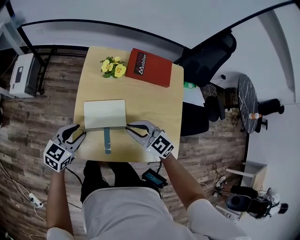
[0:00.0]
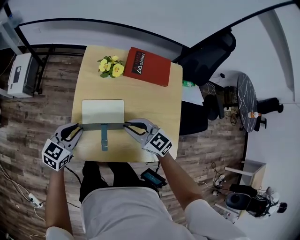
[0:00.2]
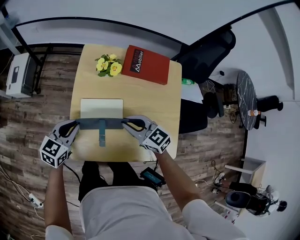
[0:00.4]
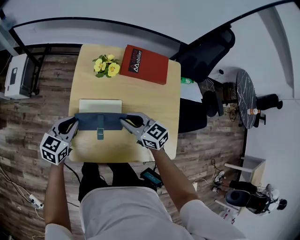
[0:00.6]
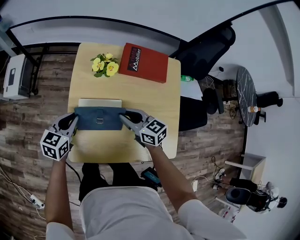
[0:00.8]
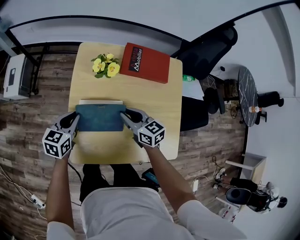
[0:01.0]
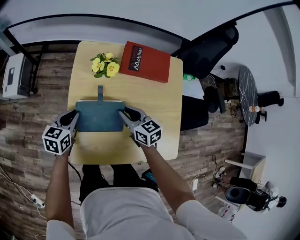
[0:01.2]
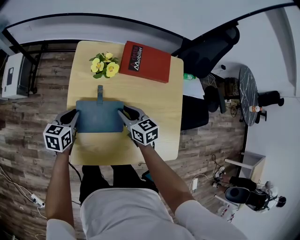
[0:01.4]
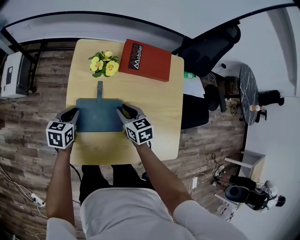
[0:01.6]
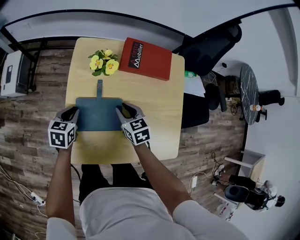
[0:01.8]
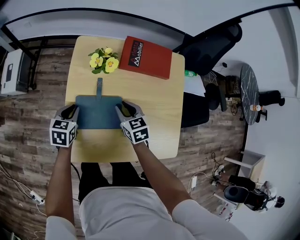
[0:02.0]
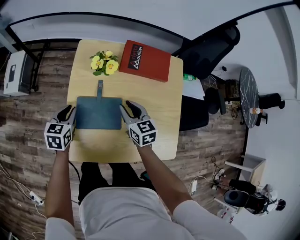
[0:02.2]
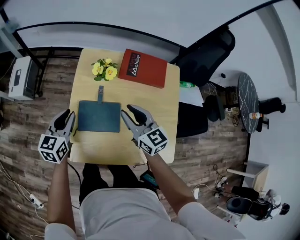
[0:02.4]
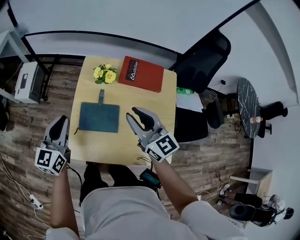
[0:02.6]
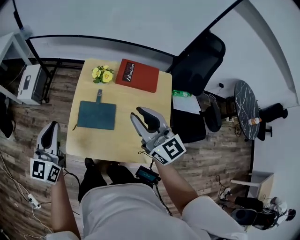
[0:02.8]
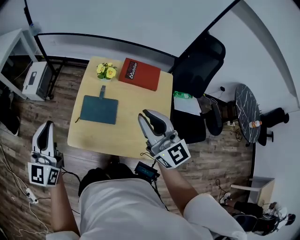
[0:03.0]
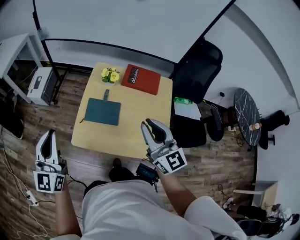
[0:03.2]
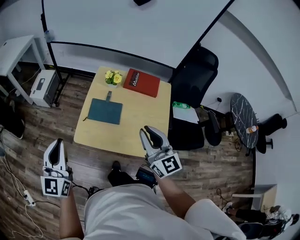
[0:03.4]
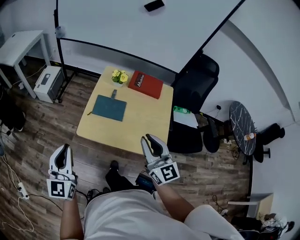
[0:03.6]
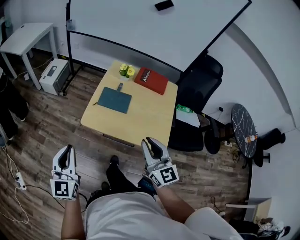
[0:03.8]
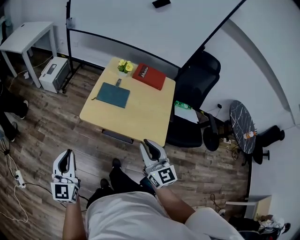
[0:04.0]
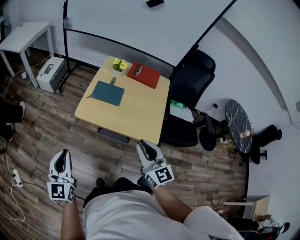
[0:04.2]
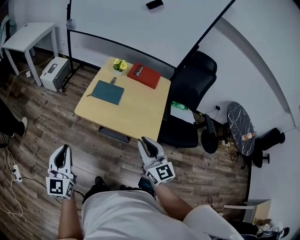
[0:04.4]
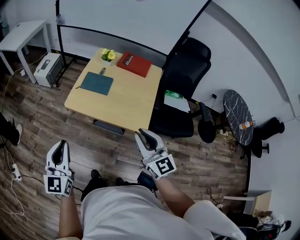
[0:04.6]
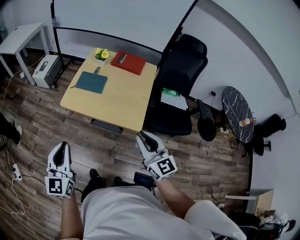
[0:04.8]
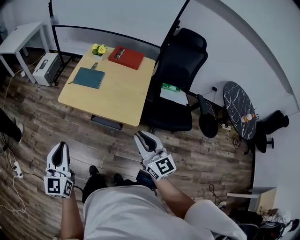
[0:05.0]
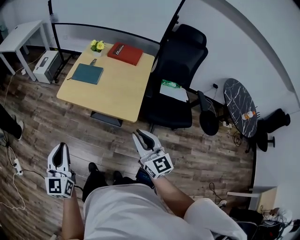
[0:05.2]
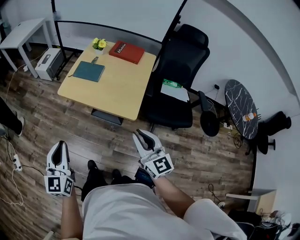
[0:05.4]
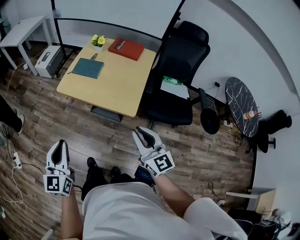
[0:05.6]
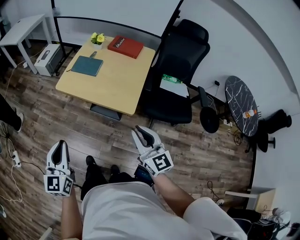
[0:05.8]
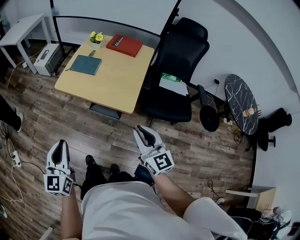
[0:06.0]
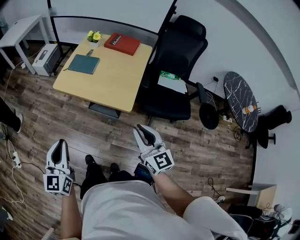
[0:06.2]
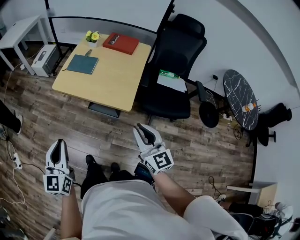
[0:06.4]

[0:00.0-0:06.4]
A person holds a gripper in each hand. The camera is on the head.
0:00.0 to 0:01.6: The right gripper heads downward and forward, covering some 15 cm, and changes its angle by roughly 40 degrees. The left gripper heads forward and downward, covering some 15 cm, changes its angle by roughly 20 degrees, and closes.
0:01.6 to 0:03.2: Both grippers move upward and backward, approximately 40 cm. The left gripper tilts its fingers some 50 degrees upward; the right gripper tips its fingers upward by some 40 degrees.
0:03.2 to 0:04.8: Both grippers travel together backward, about 30 cm.
0:04.8 to 0:06.4: Both grippers travel together backward and to the right, some 10 cm.

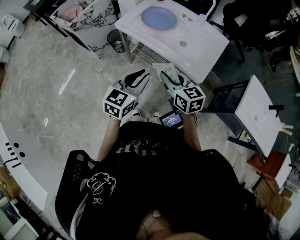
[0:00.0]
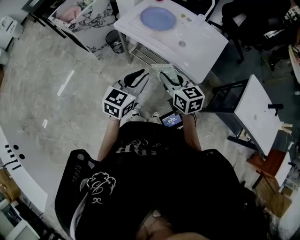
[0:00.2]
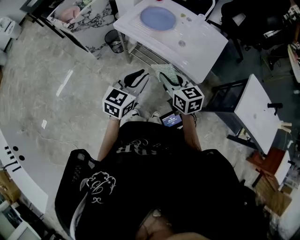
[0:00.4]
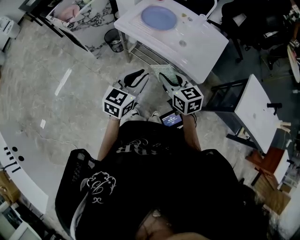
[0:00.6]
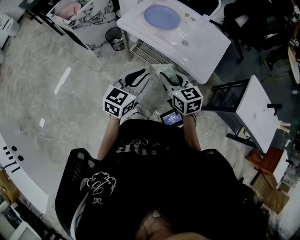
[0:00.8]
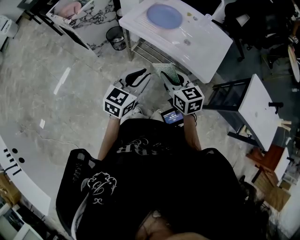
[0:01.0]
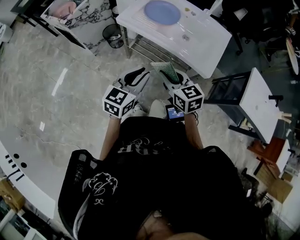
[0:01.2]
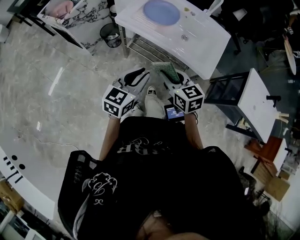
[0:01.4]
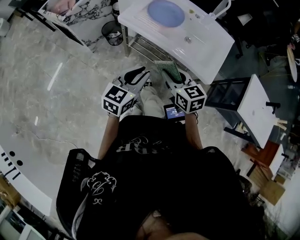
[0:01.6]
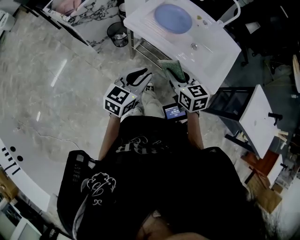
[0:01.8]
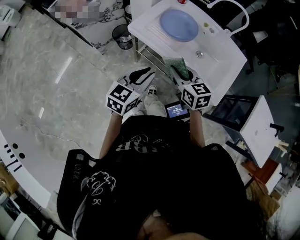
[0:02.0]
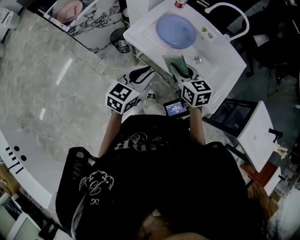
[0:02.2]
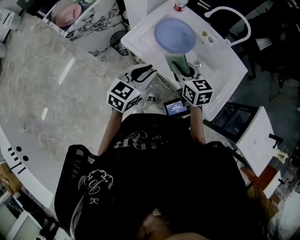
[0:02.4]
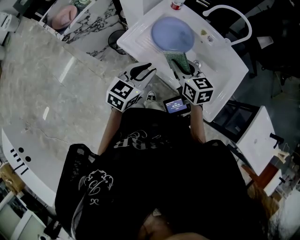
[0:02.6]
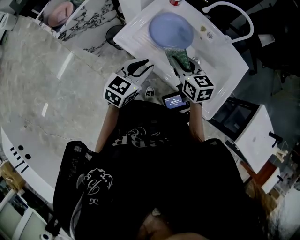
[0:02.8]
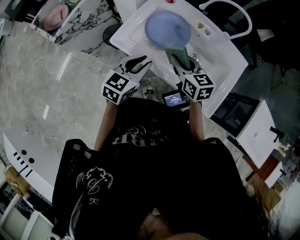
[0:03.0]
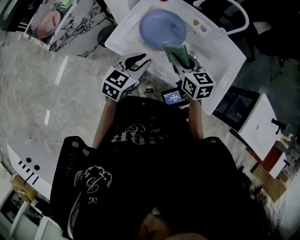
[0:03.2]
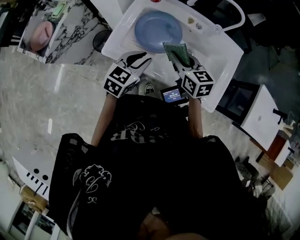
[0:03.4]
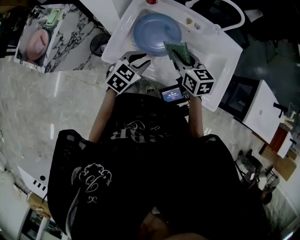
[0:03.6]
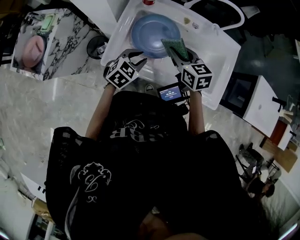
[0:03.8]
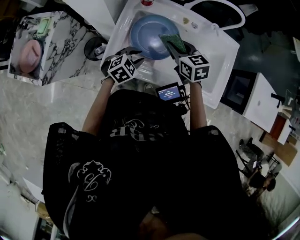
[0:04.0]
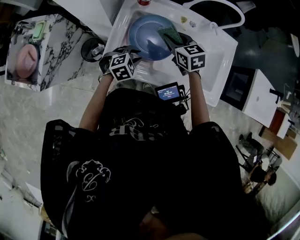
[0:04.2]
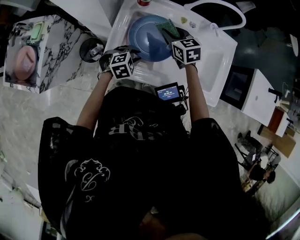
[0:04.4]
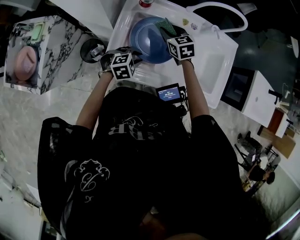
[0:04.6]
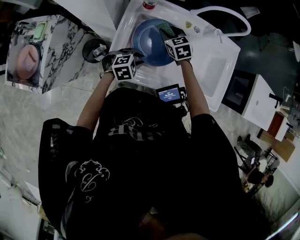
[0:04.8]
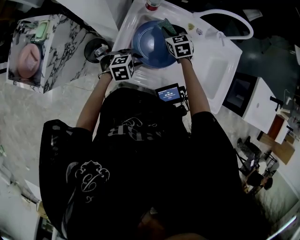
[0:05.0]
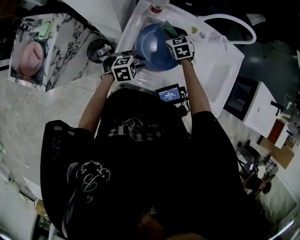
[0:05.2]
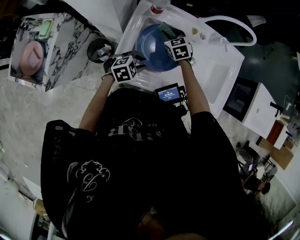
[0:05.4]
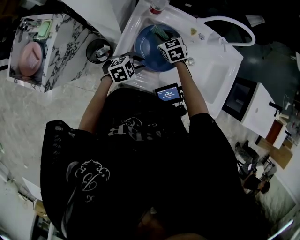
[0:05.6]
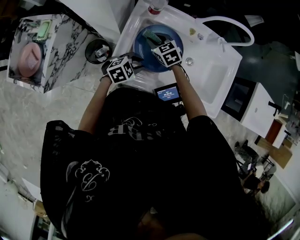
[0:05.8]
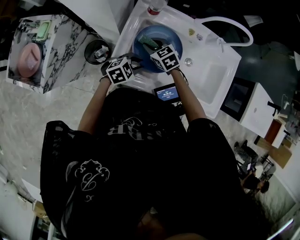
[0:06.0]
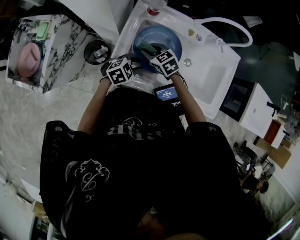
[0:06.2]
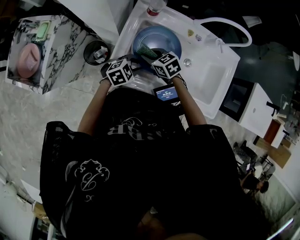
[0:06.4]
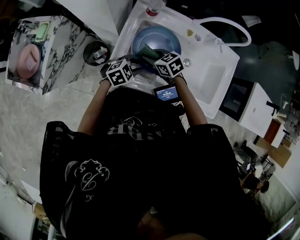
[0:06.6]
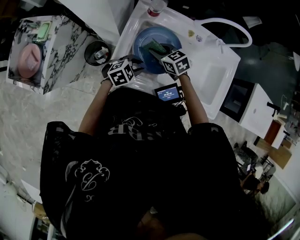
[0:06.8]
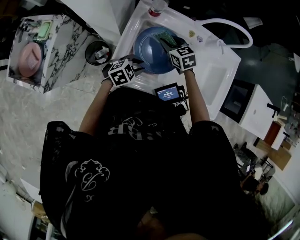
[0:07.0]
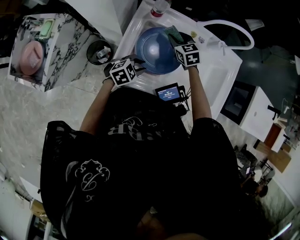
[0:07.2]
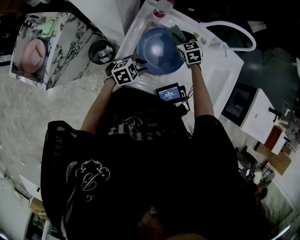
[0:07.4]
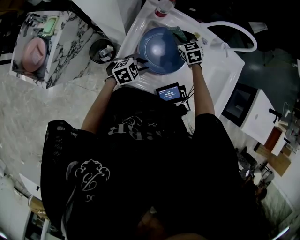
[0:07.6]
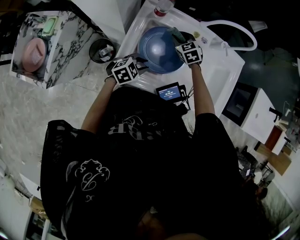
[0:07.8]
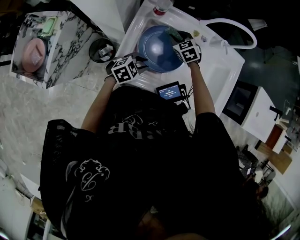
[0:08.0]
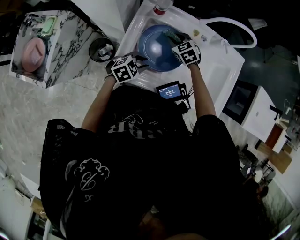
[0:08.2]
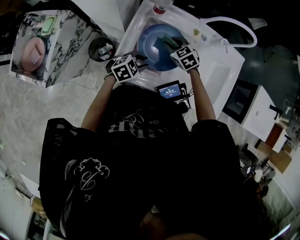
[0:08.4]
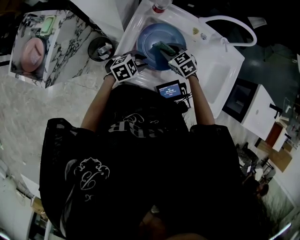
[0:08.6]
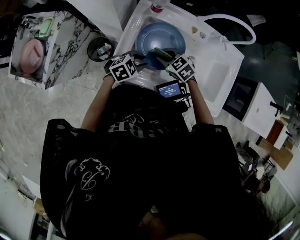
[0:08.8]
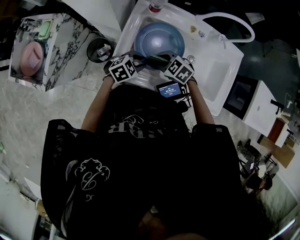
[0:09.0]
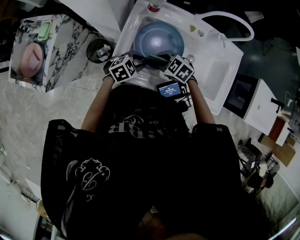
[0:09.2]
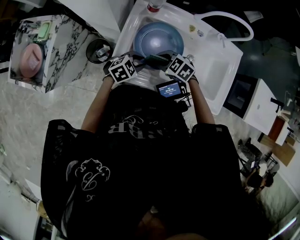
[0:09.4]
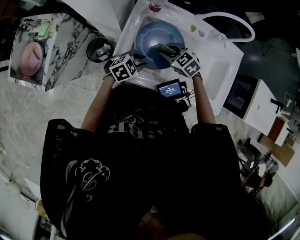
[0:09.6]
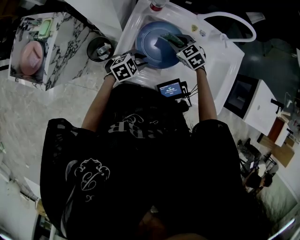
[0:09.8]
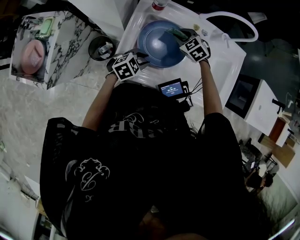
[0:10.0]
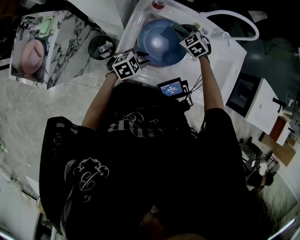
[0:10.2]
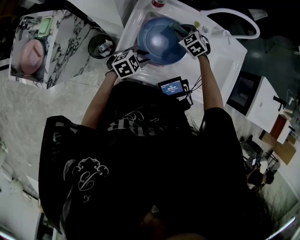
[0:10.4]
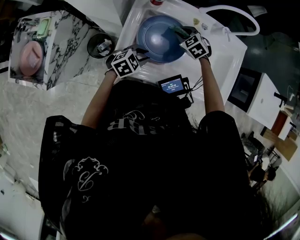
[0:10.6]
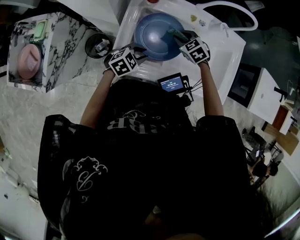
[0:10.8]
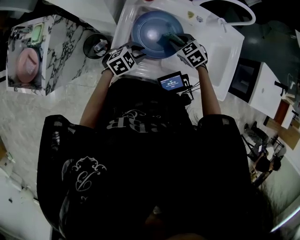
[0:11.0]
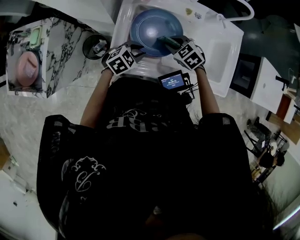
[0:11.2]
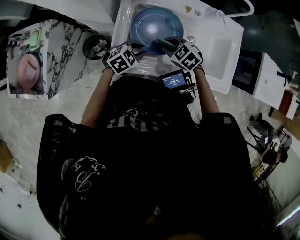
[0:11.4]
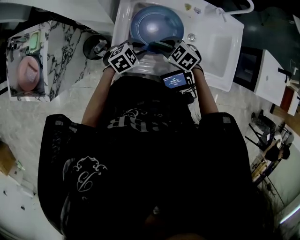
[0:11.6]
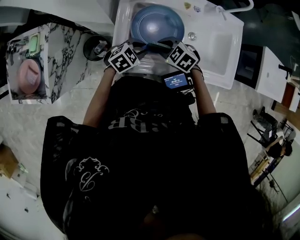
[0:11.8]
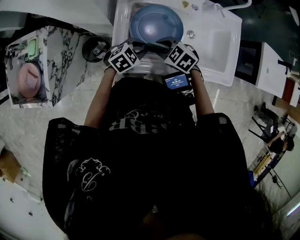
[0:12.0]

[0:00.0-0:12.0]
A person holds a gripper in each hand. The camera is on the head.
0:00.0 to 0:01.6: The left gripper travels to the left and forward by approximately 10 cm; the right gripper heads to the left, covering about 10 cm.
0:01.6 to 0:03.0: Both grippers travel together forward, some 25 cm.
0:03.0 to 0:04.4: The right gripper ends up some 20 cm from where it was. Meanwhile the left gripper goes approximately 20 cm downward, and tilts its fingers approximately 30 degrees downward.
0:04.4 to 0:06.0: The right gripper heads to the left and downward, covering some 10 cm.
0:06.0 to 0:07.6: The right gripper shifts by roughly 15 cm.
0:07.6 to 0:09.0: The right gripper moves about 20 cm, and changes its angle by some 30 degrees.
0:09.0 to 0:10.4: The right gripper moves some 15 cm, and turns by about 20 degrees.
0:10.4 to 0:12.0: The right gripper shifts by about 20 cm.

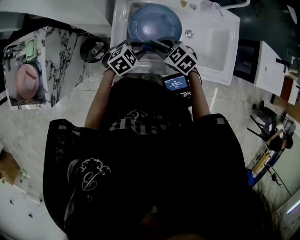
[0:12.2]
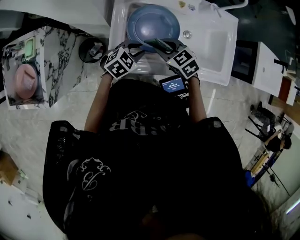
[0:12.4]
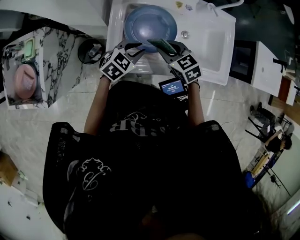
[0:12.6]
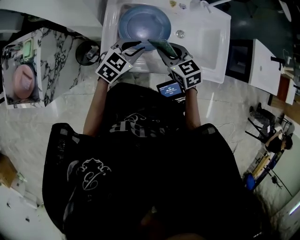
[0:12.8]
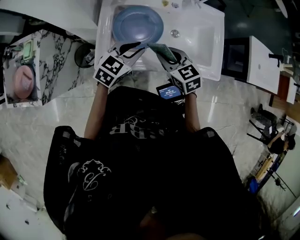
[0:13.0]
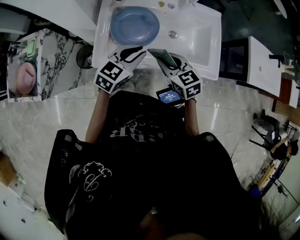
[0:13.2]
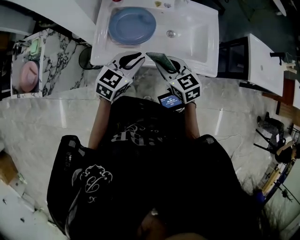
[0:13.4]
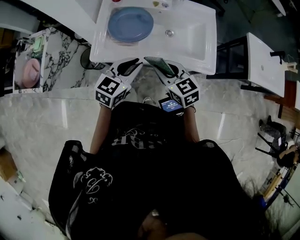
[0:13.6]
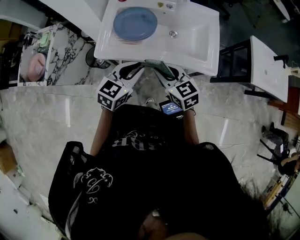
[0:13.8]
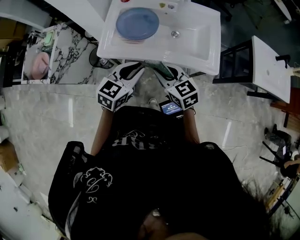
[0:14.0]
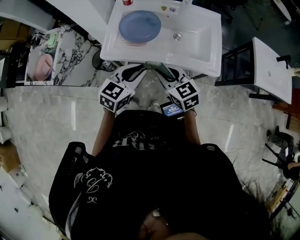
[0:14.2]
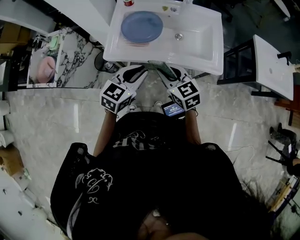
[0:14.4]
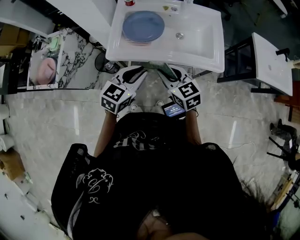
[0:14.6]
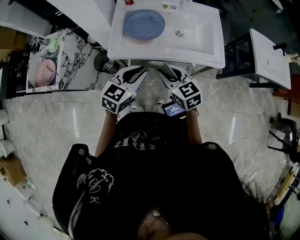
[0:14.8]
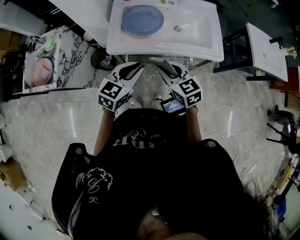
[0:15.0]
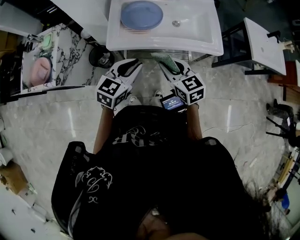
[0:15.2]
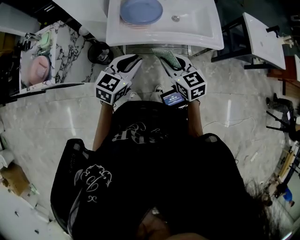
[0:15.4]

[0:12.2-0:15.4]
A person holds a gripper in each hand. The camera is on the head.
0:12.2 to 0:13.8: The right gripper shifts by approximately 30 cm, and rotates some 30 degrees. Meanwhile the left gripper moves roughly 30 cm, and changes its angle by some 30 degrees.
0:13.8 to 0:15.4: Both grippers move to the left and backward, roughly 10 cm.

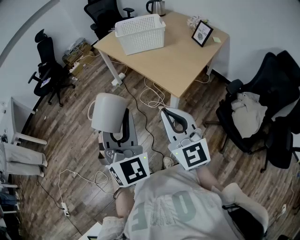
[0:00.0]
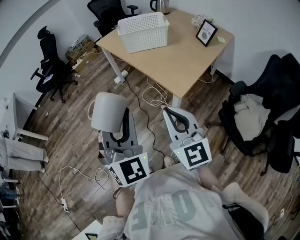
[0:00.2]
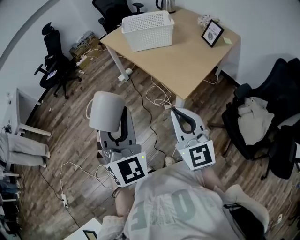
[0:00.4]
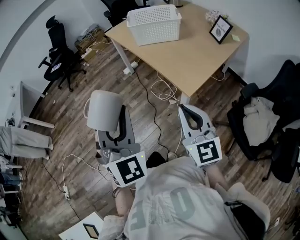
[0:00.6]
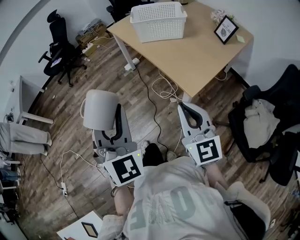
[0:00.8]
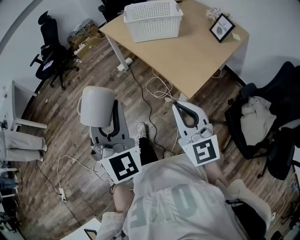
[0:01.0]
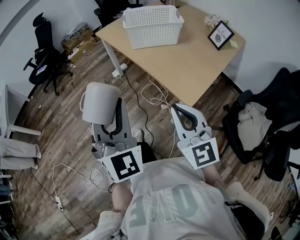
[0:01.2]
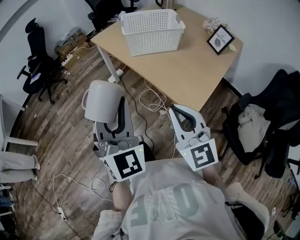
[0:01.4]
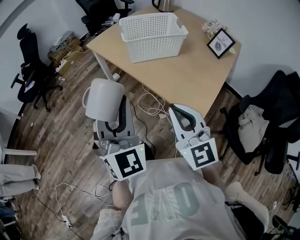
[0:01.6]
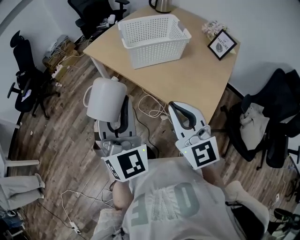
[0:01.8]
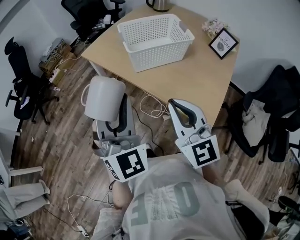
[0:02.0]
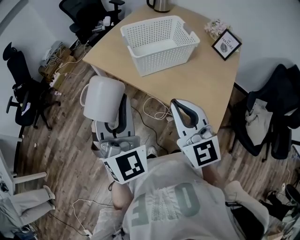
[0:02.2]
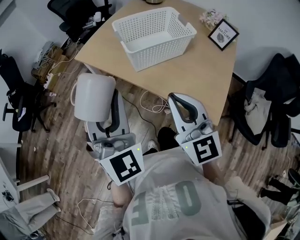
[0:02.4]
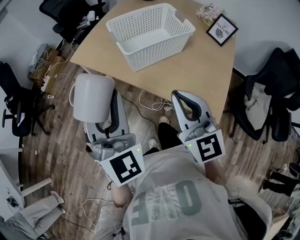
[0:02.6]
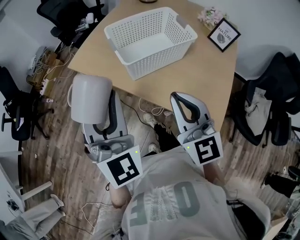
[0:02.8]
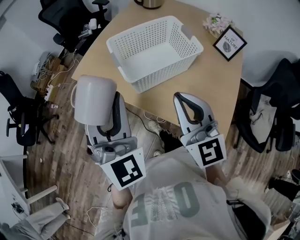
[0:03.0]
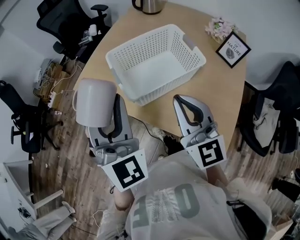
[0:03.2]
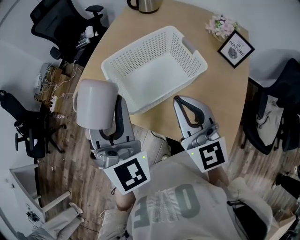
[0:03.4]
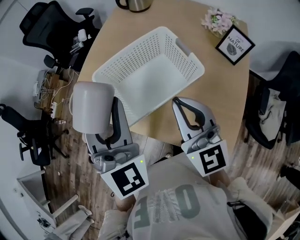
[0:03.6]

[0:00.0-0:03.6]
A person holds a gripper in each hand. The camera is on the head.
0:00.0 to 0:01.8: Both grippers travel together forward, some 35 cm.
0:01.8 to 0:03.6: Both grippers move forward, approximately 35 cm.
